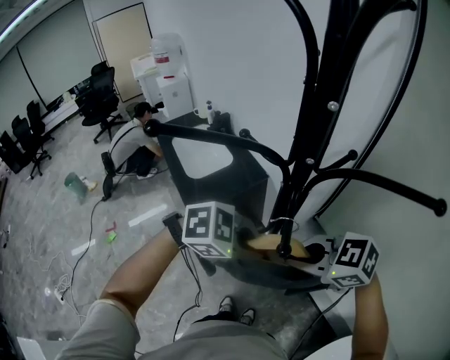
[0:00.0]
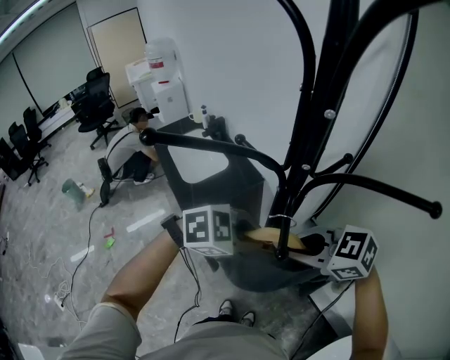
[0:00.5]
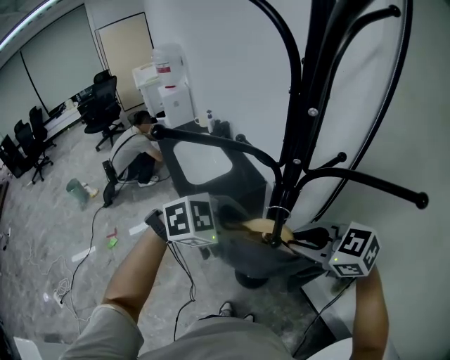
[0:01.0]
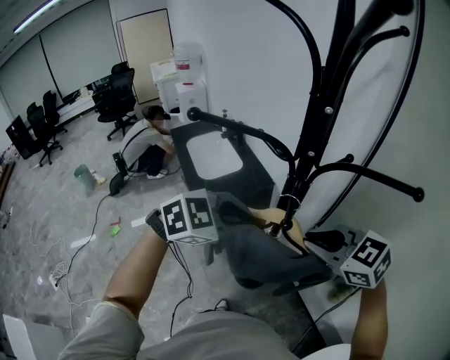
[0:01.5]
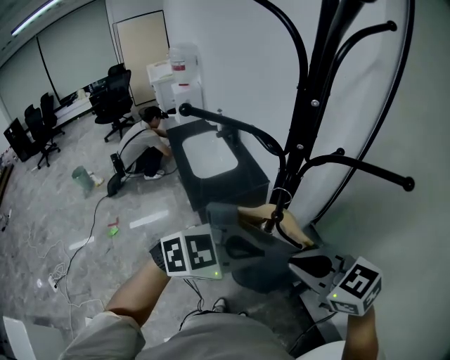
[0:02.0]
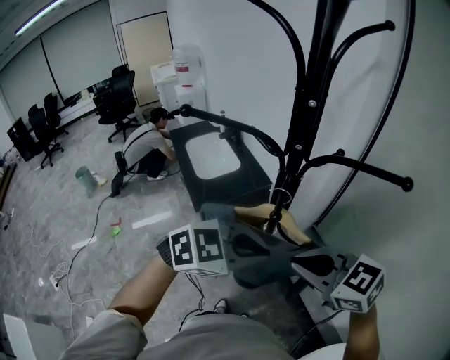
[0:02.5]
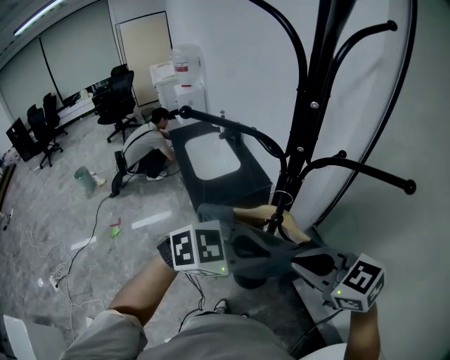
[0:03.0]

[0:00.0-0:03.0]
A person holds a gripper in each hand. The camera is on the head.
0:00.0 to 0:01.5: Both grippers travel together upward, roughly 5 cm. The left gripper rotates approximately 30 degrees.
0:01.5 to 0:03.0: The left gripper changes place by about 10 cm. The right gripper shifts by approximately 5 cm.

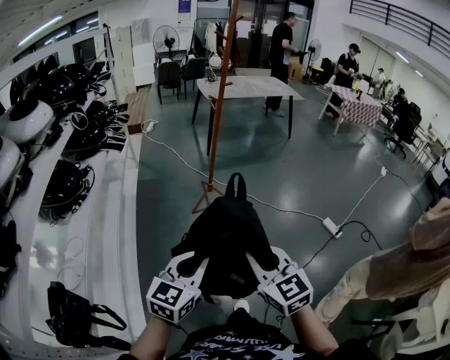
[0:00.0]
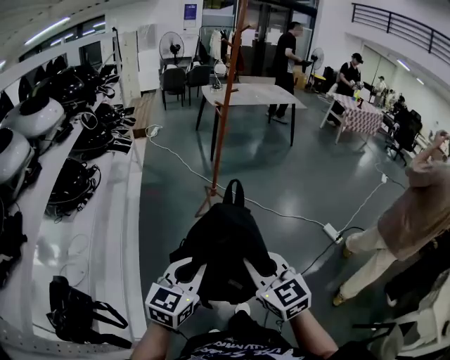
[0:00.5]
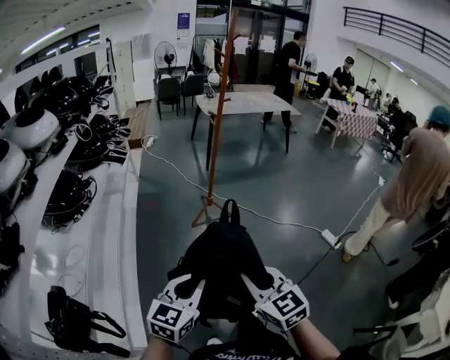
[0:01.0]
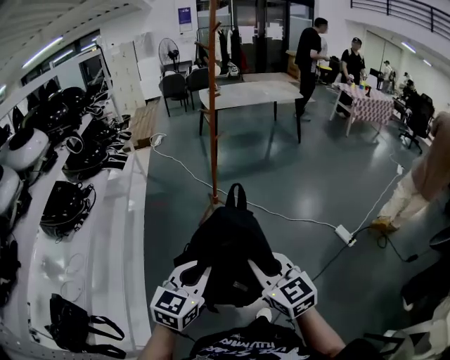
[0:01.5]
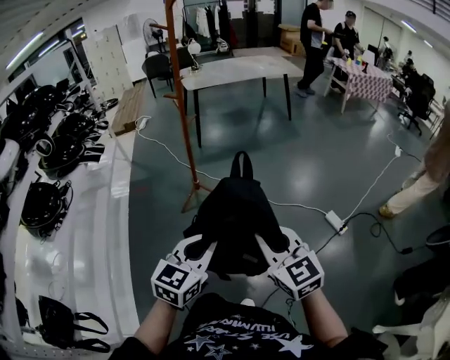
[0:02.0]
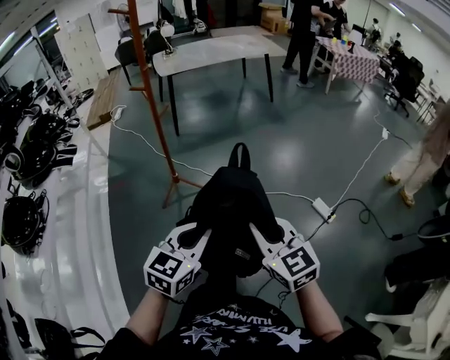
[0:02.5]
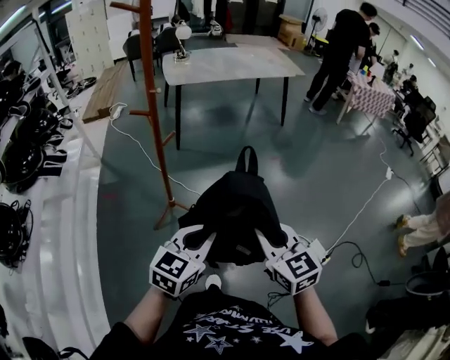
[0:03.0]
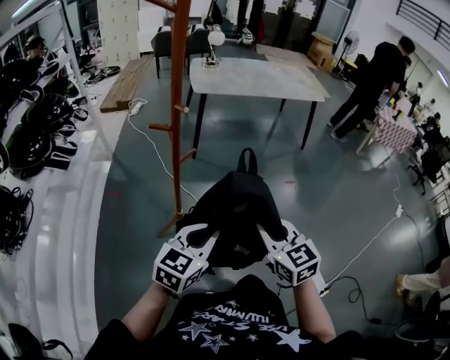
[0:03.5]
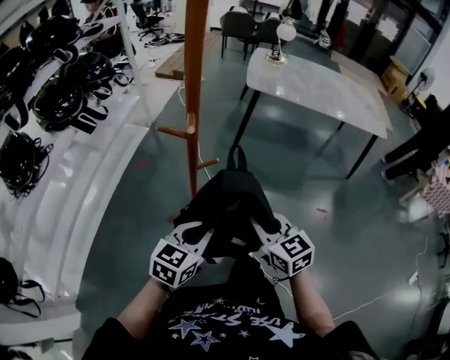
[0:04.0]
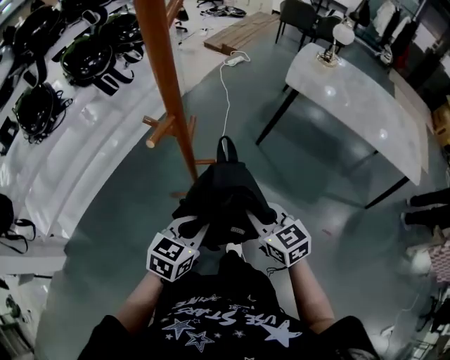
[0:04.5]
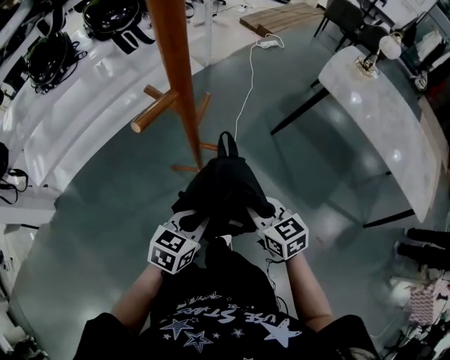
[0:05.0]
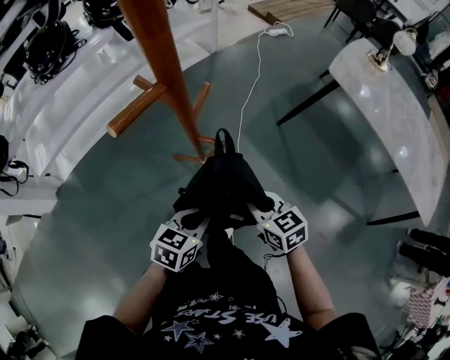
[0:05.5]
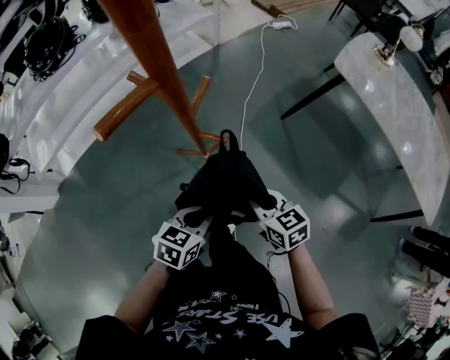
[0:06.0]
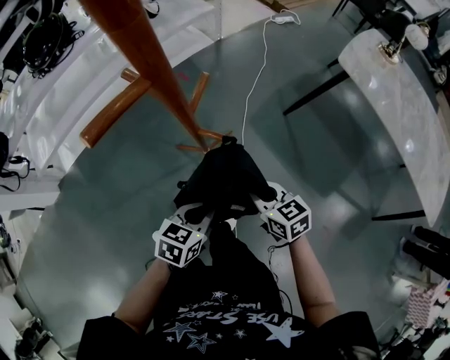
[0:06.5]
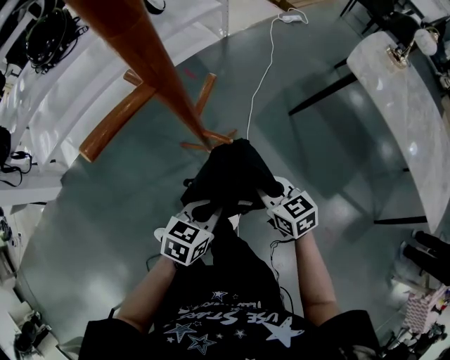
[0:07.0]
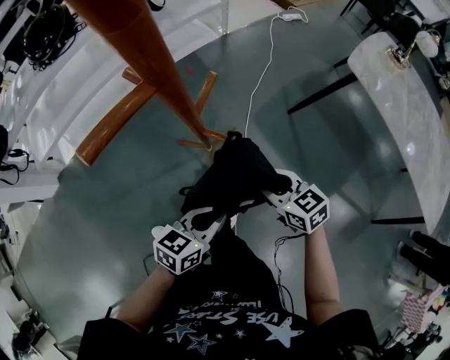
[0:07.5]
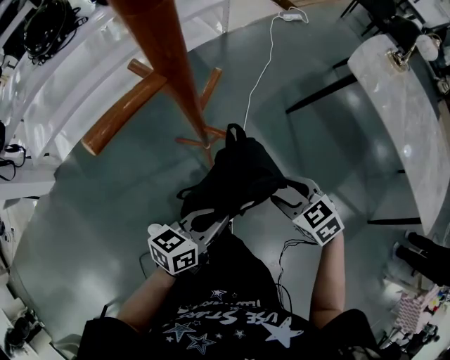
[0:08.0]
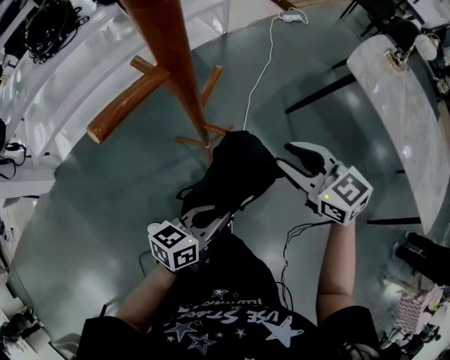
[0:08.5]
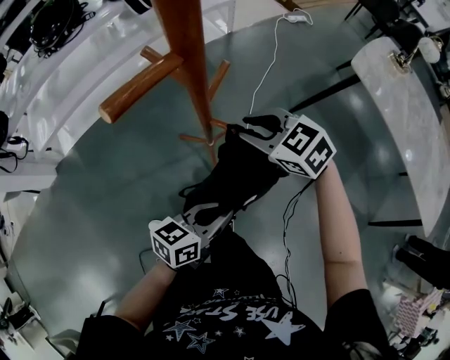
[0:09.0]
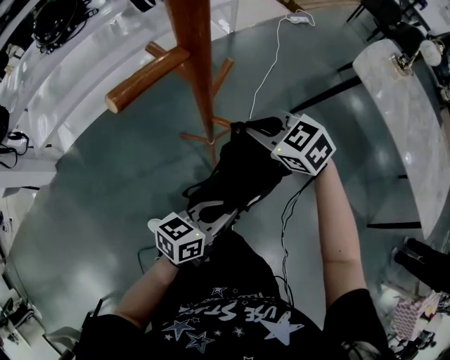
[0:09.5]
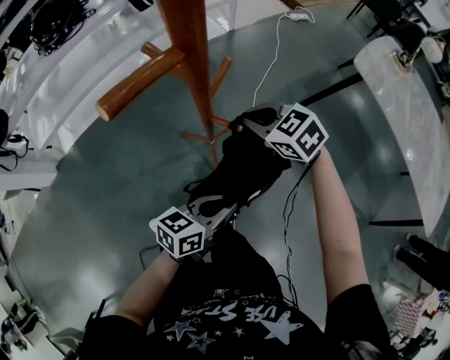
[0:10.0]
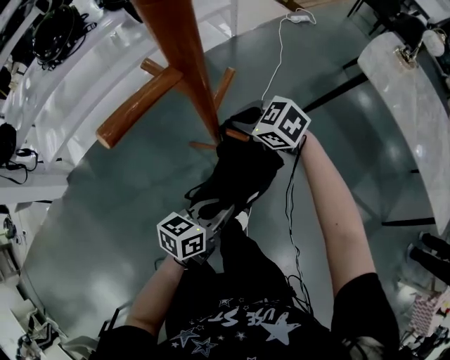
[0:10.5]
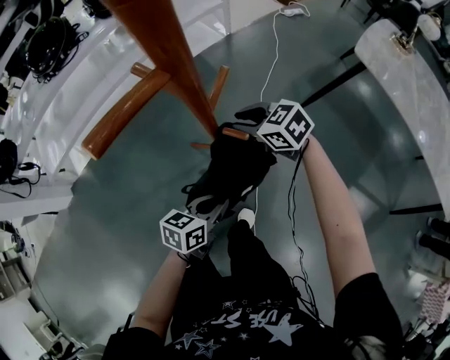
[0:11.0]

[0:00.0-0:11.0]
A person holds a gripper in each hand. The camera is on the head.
0:00.0 to 0:02.0: The grippers both shift to the right and forward by roughly 30 cm.
0:02.0 to 0:03.5: The two grippers travel together, forward, roughly 50 cm.
0:03.5 to 0:05.5: The right gripper shifts by some 40 cm, and rotates approximately 70 degrees; the left gripper ends up some 35 cm from where it was, and rotates about 60 degrees.
0:05.5 to 0:07.5: The right gripper heads forward, covering some 5 cm, and opens.
0:07.5 to 0:09.0: The right gripper moves forward, upward and to the left, about 15 cm, and turns by some 30 degrees.
0:09.0 to 0:11.0: The right gripper heads downward and forward, covering about 10 cm, and closes, then reopens. The left gripper goes about 10 cm downward.

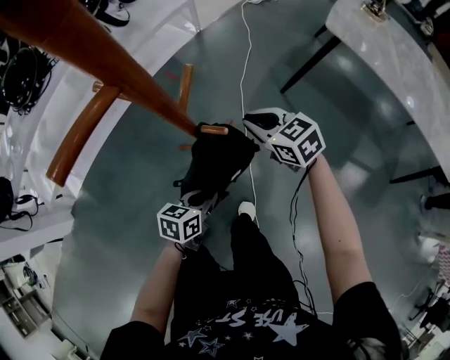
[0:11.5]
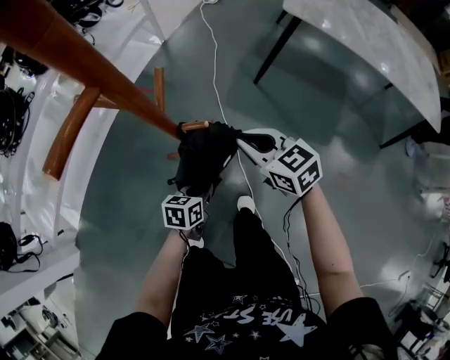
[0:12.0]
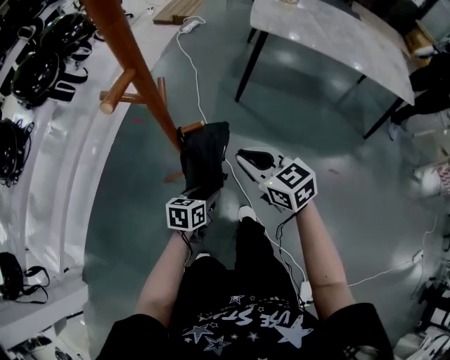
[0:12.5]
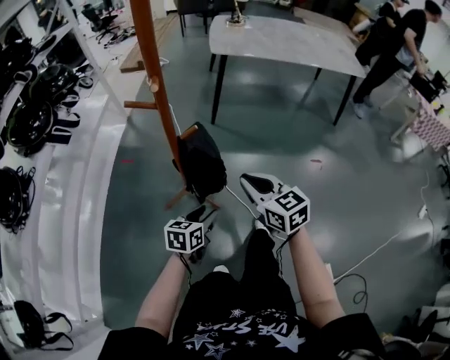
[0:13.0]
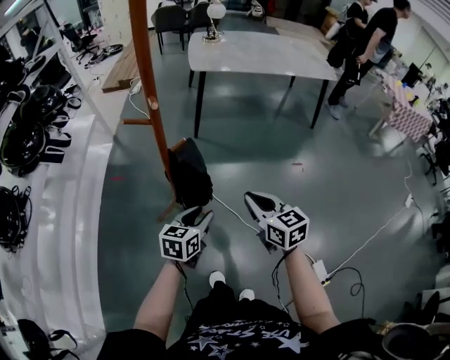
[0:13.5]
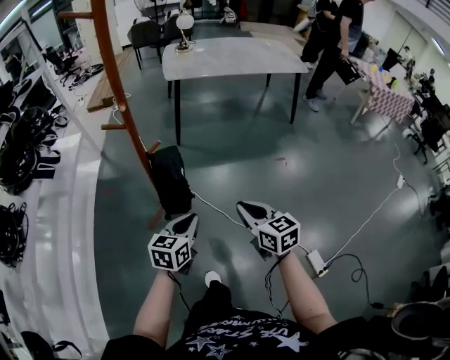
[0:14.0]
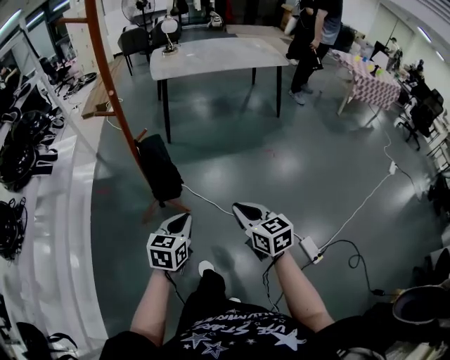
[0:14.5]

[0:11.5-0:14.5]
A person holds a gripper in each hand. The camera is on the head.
0:11.5 to 0:13.0: The left gripper shifts by approximately 15 cm, changes its angle by about 30 degrees, and opens its fingers. Meanwhile the right gripper moves approximately 35 cm, and turns by some 50 degrees.
0:13.0 to 0:14.5: The right gripper is displaced backward and to the right by some 30 cm, and rotates approximately 20 degrees; the left gripper travels backward, upward and to the right by approximately 25 cm, changes its angle by some 20 degrees, and closes.

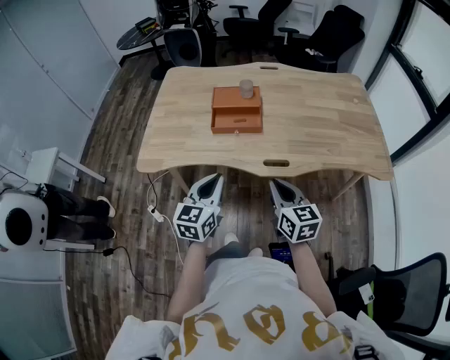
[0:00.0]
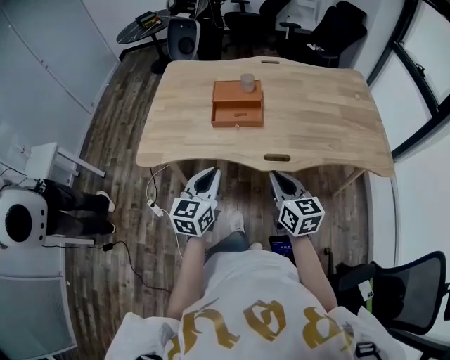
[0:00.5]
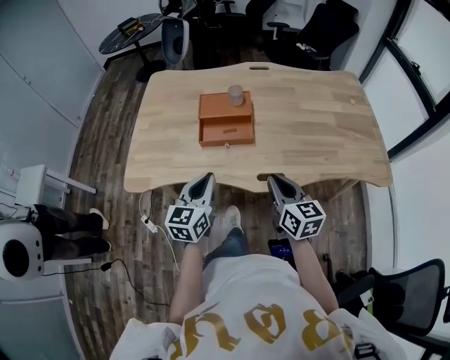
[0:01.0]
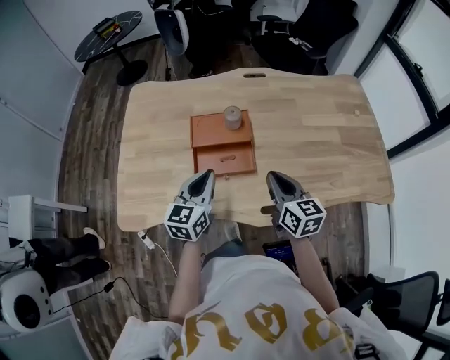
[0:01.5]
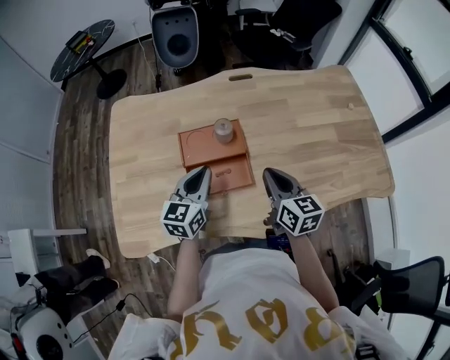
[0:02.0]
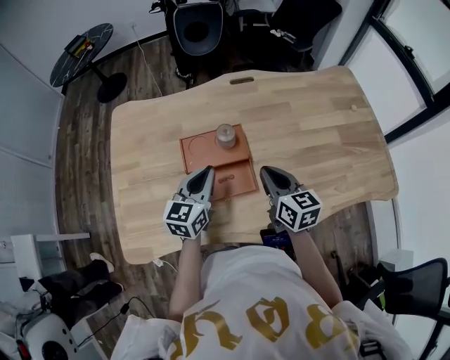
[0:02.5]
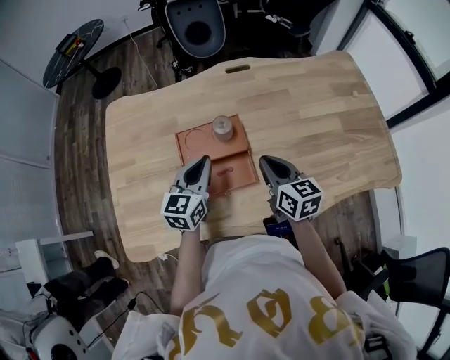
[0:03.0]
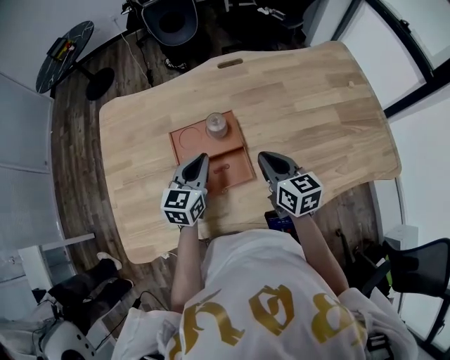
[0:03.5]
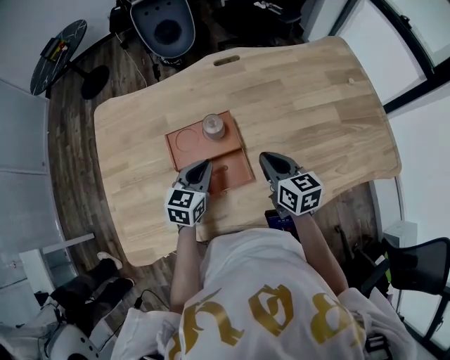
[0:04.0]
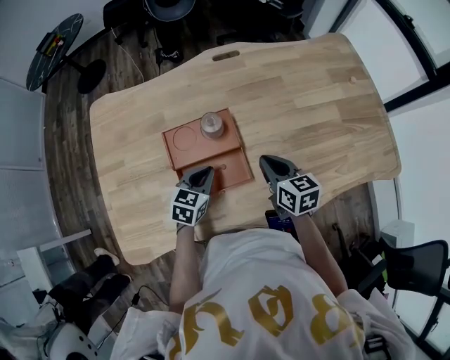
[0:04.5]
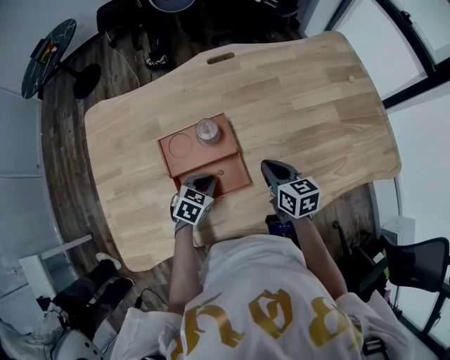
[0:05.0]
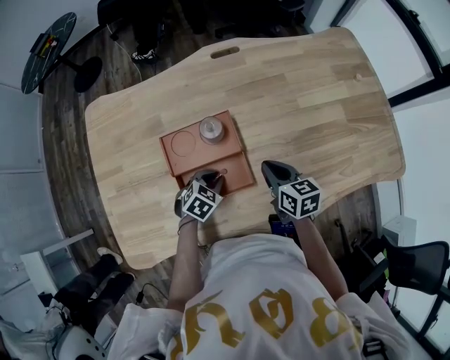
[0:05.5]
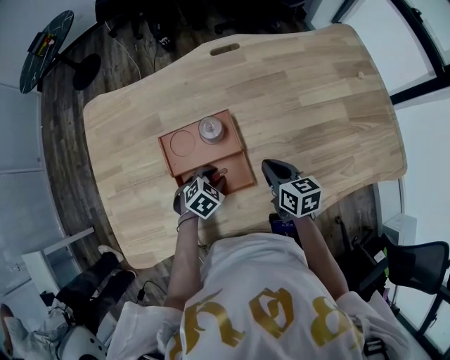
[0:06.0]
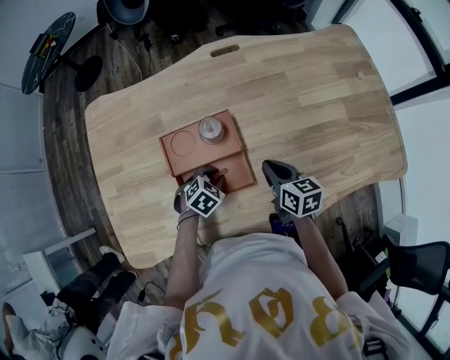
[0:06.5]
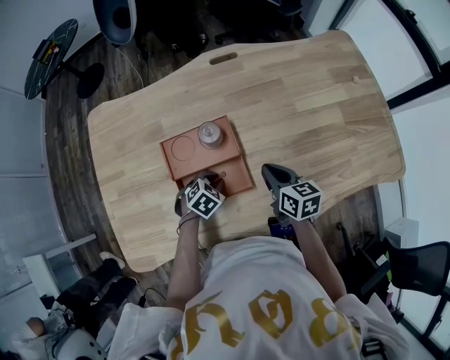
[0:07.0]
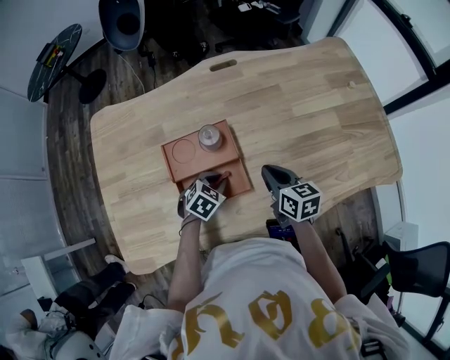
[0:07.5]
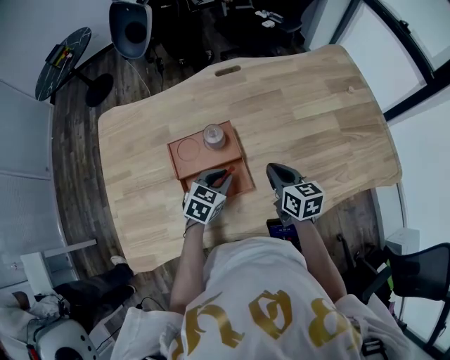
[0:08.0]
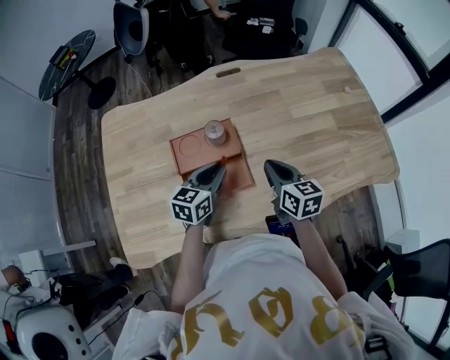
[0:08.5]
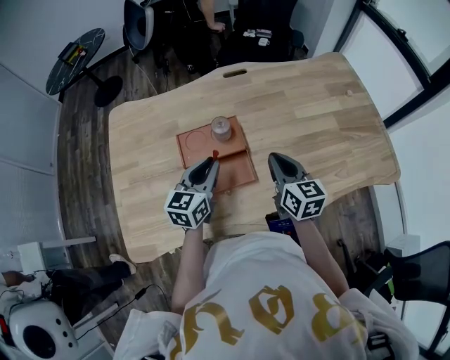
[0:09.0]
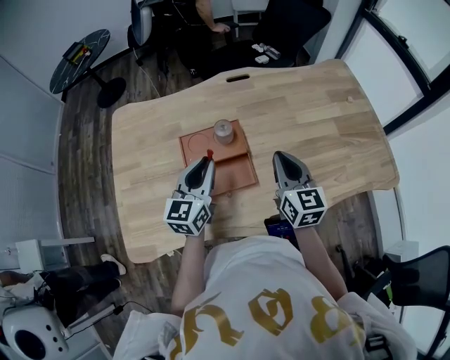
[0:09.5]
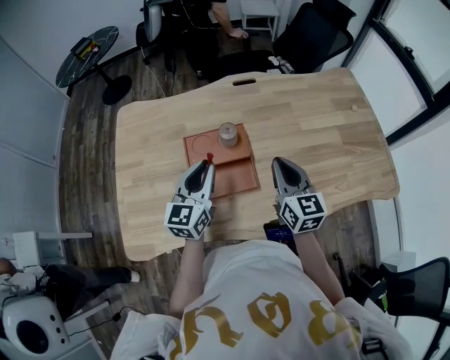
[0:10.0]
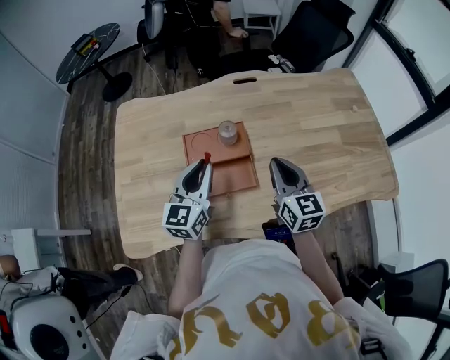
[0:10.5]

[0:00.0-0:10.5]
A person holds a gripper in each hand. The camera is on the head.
0:00.0 to 0:02.0: Both grippers move forward, roughly 35 cm.
0:02.0 to 0:04.0: The left gripper heads downward and forward, covering roughly 10 cm; the right gripper moves forward and downward, about 10 cm.
0:04.0 to 0:06.5: The right gripper shifts about 10 cm downward; the left gripper is displaced downward by about 15 cm, and tilts its fingers some 40 degrees downward.
0:06.5 to 0:08.5: The right gripper is displaced upward by roughly 10 cm; the left gripper travels upward by about 15 cm, and points its fingers some 40 degrees further upward.
0:08.5 to 0:10.5: The left gripper heads upward and to the left, covering about 10 cm, and turns by some 30 degrees. Meanwhile the right gripper shifts some 10 cm upward.
